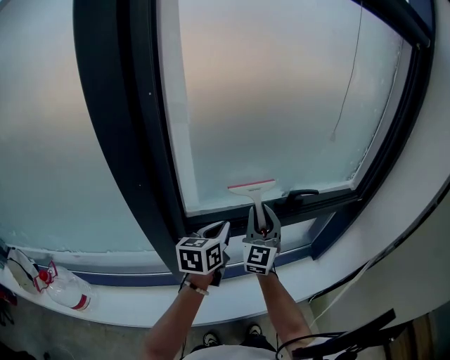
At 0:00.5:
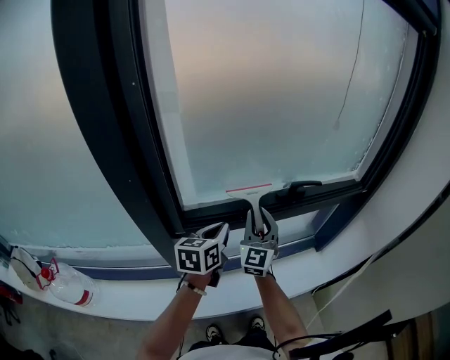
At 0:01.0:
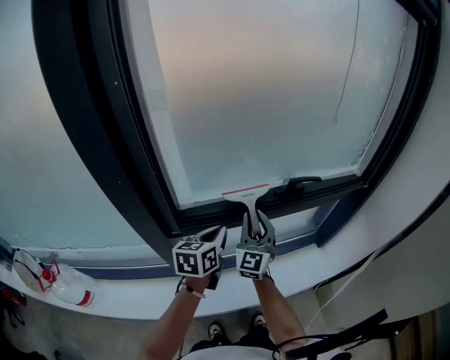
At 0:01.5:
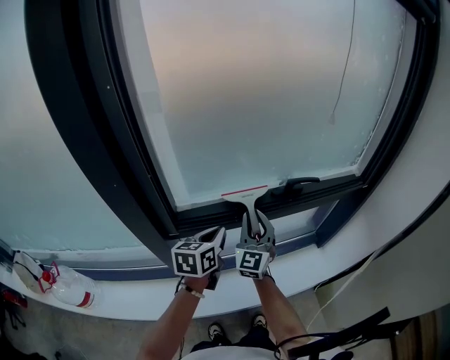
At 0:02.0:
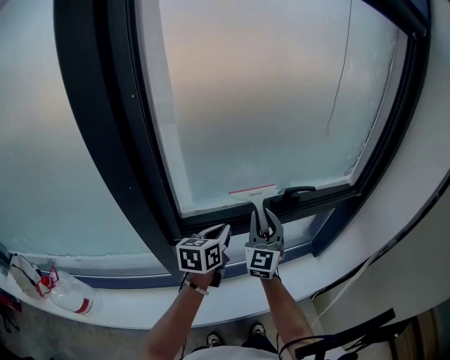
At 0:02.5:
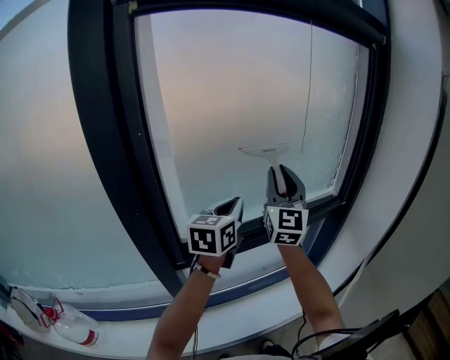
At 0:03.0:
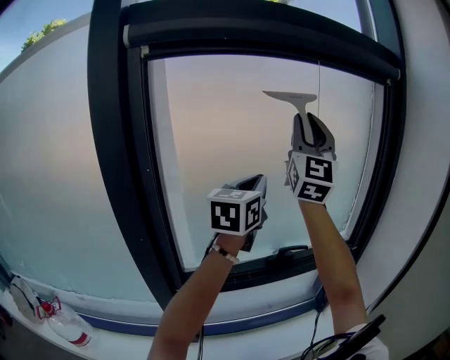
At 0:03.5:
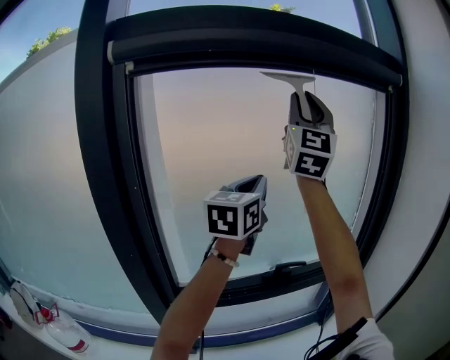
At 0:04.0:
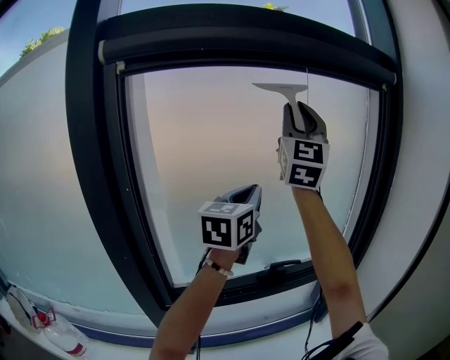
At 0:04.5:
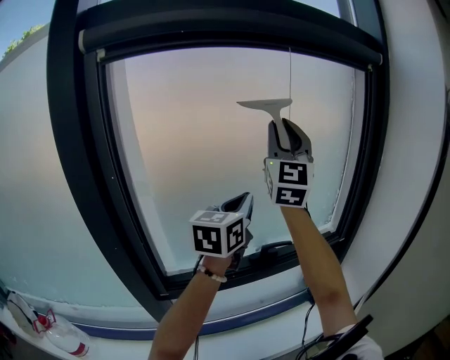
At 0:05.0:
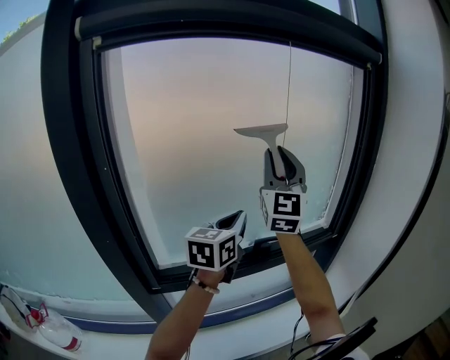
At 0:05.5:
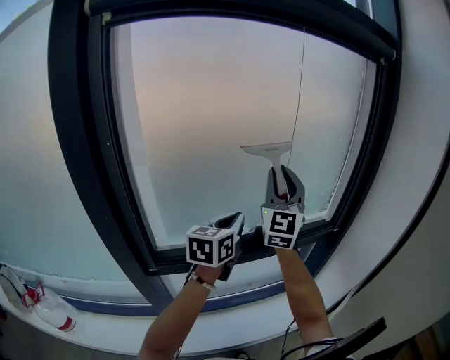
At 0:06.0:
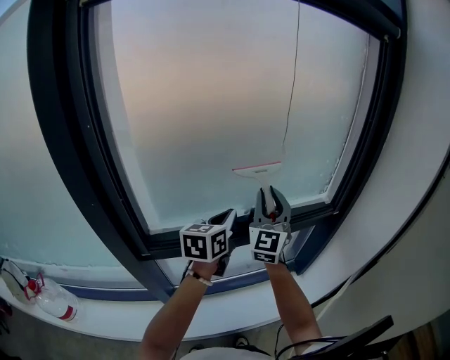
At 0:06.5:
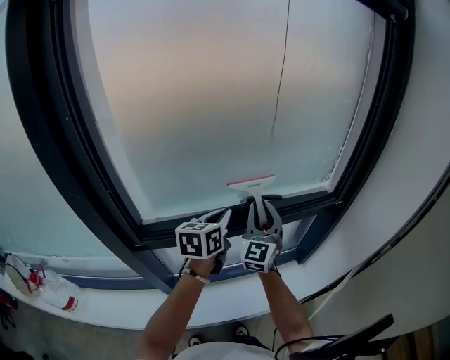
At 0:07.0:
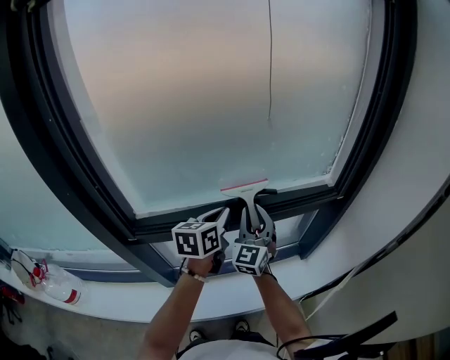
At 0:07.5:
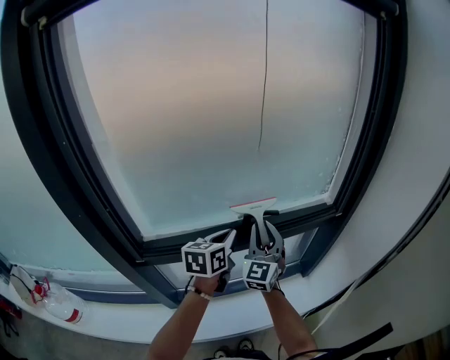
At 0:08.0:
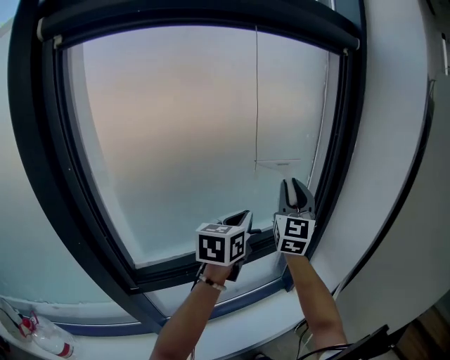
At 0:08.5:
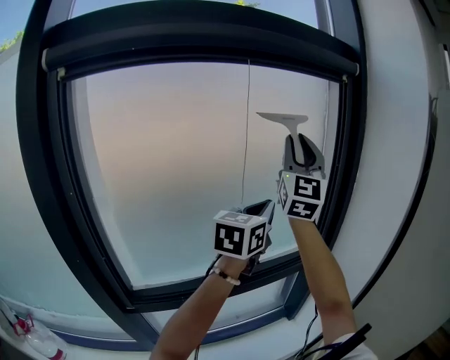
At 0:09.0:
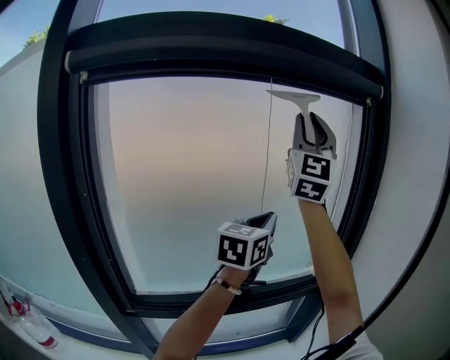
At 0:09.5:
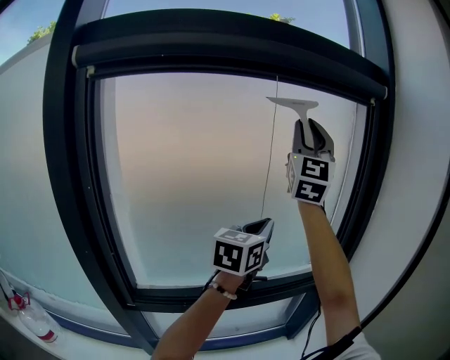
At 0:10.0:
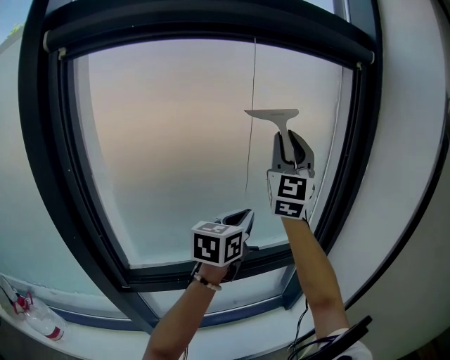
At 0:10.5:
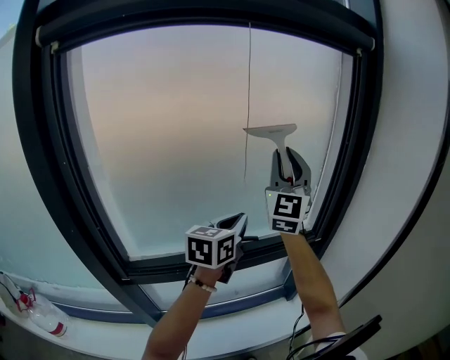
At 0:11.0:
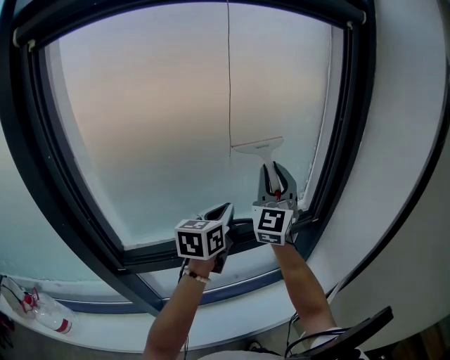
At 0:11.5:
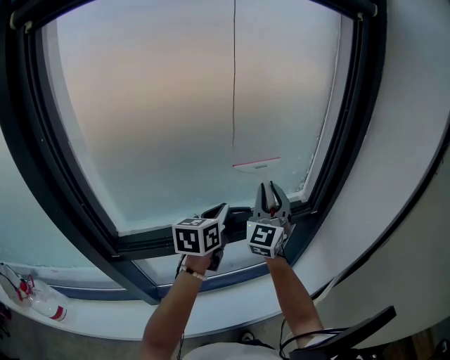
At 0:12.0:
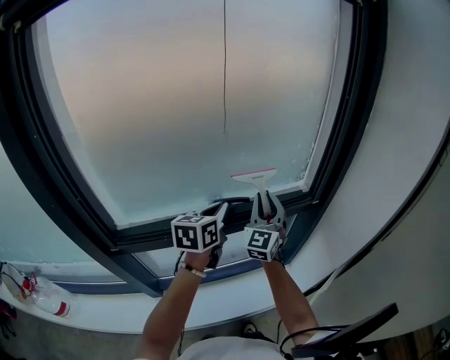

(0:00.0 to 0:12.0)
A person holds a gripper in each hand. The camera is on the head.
0:00.0 - 0:02.0: The right gripper travels downward and back again, some 10 cm each way.
0:02.0 - 0:04.0: Both grippers travel together upward, approximately 50 cm. The right gripper angles its fingers upward, by roughly 30 degrees; the left gripper swivels some 30 degrees.
0:04.0 - 0:06.0: The right gripper goes approximately 40 cm downward, and turns by some 20 degrees. The left gripper goes approximately 25 cm downward, and changes its angle by some 20 degrees.
0:06.0 - 0:08.0: The two grippers go about 15 cm to the right and upward.
0:08.0 - 0:10.0: The left gripper goes upward and returns, some 15 cm each way. The right gripper shifts about 15 cm upward.
0:10.0 - 0:12.0: The right gripper shifts some 35 cm downward, and swivels about 30 degrees, while the left gripper is displaced downward by some 15 cm.

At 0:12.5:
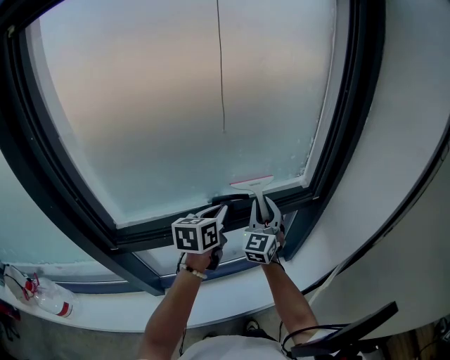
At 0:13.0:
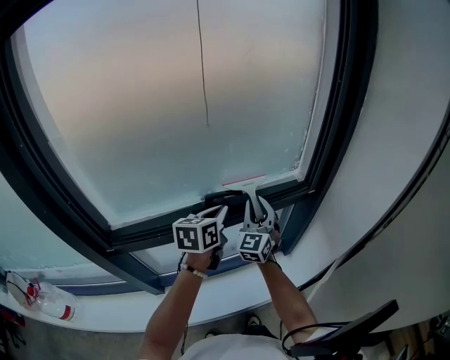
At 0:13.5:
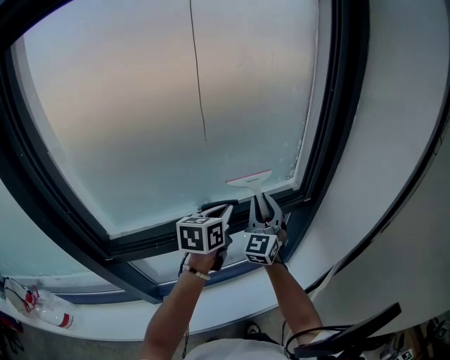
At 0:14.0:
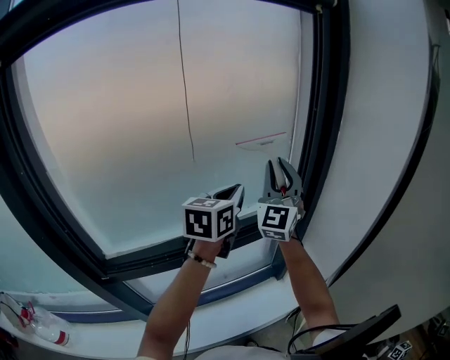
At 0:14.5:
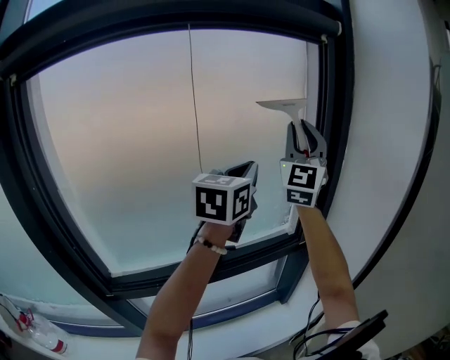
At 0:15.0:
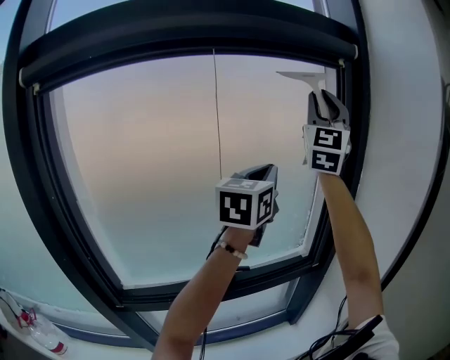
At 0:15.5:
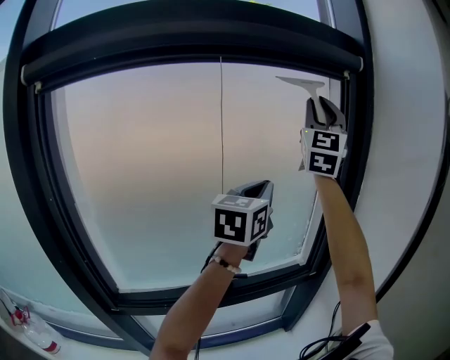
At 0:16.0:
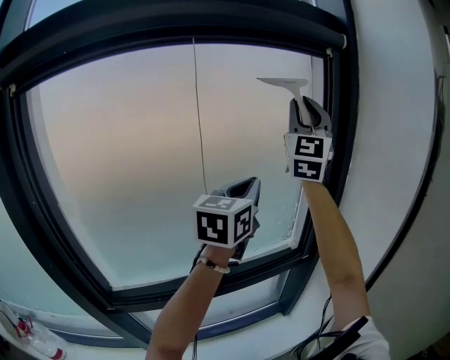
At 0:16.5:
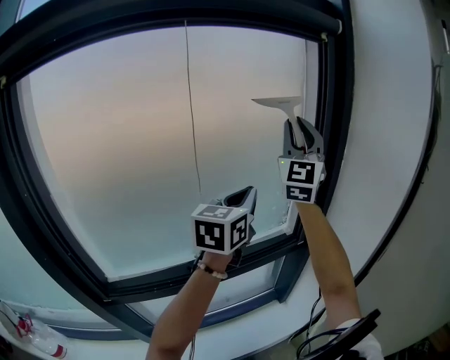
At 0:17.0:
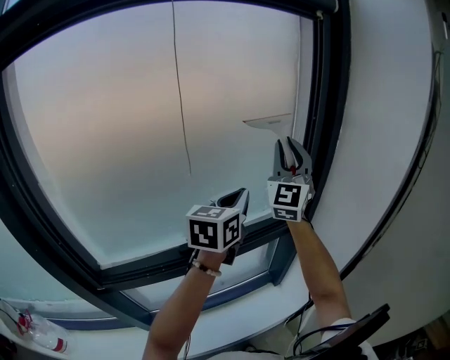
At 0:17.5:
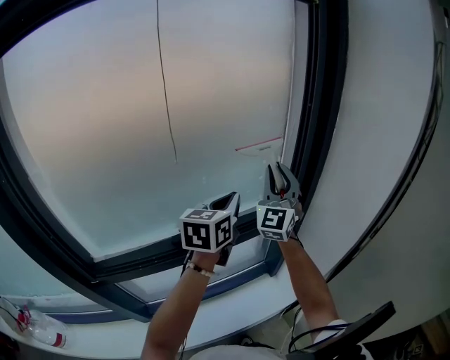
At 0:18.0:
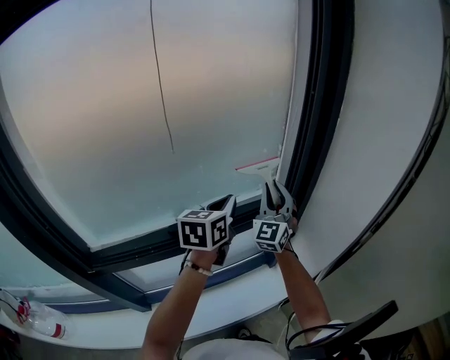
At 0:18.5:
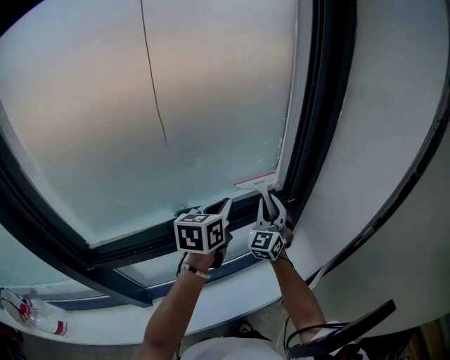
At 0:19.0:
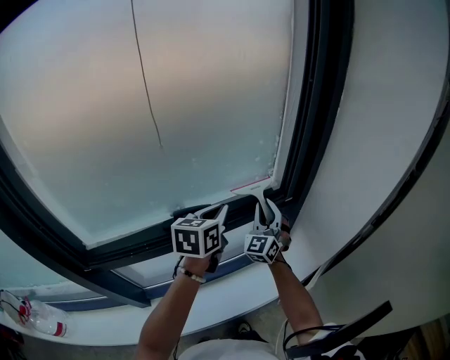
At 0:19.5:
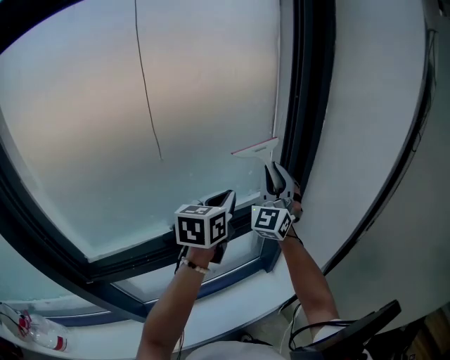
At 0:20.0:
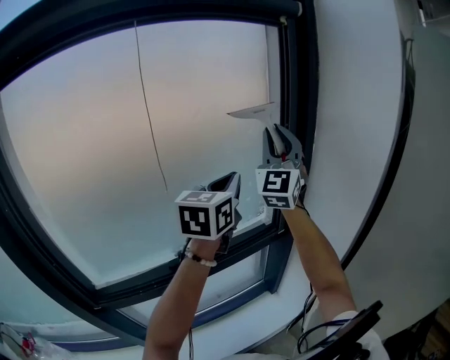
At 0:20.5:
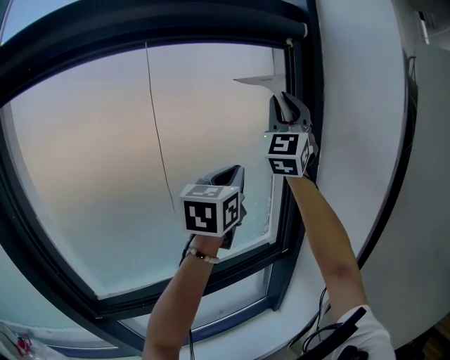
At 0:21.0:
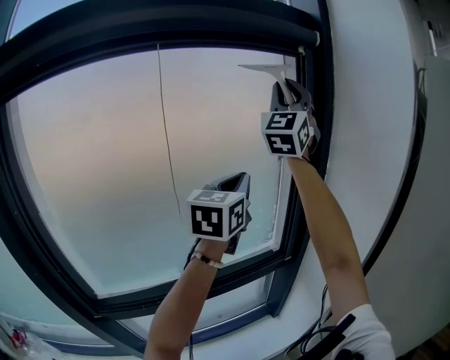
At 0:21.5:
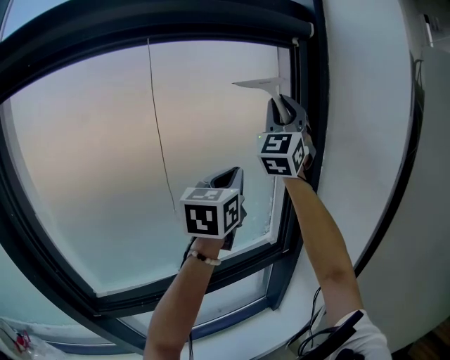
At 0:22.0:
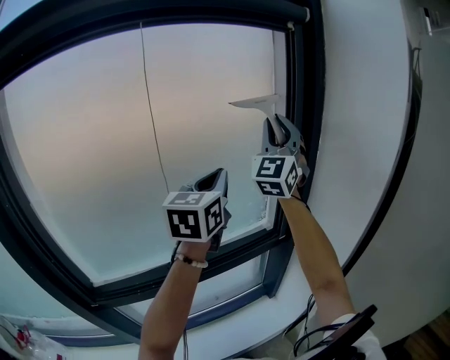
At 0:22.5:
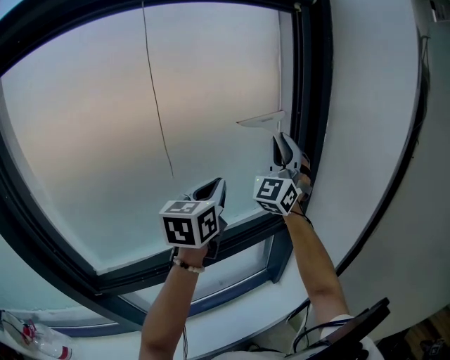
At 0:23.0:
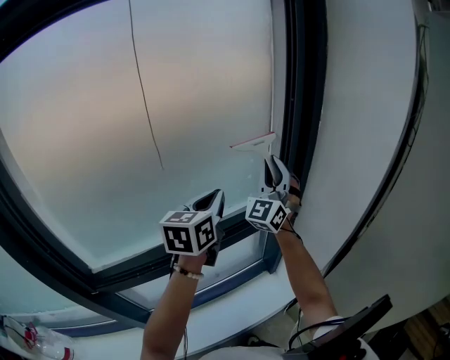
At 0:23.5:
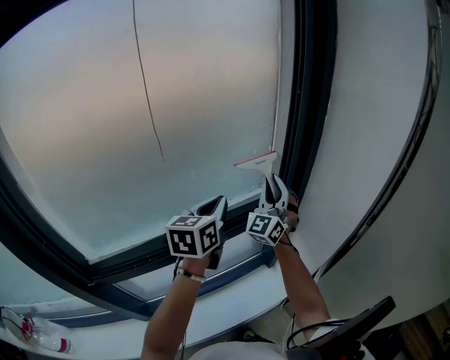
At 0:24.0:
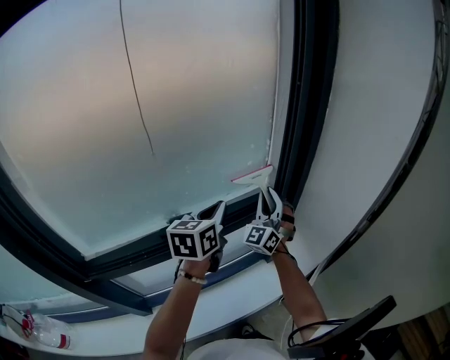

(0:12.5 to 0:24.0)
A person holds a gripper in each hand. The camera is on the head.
0:12.5 - 0:14.5: The two grippers go roughly 35 cm upward. The right gripper tips its fingers upward by about 30 degrees. Meanwhile the left gripper rotates about 30 degrees.
0:14.5 - 0:16.5: The left gripper shifts about 5 cm downward; the right gripper goes upward and returns, some 15 cm each way.
0:16.5 - 0:18.5: The right gripper shifts approximately 40 cm downward, and turns by roughly 30 degrees. The left gripper heads downward, covering roughly 20 cm, and changes its angle by some 20 degrees.
0:18.5 - 0:20.0: The right gripper goes roughly 35 cm upward, and swivels about 30 degrees, while the left gripper heads upward, covering some 20 cm, and changes its angle by about 20 degrees.
0:20.0 - 0:22.0: The right gripper reaches roughly 20 cm upward, then returns.
0:22.0 - 0:24.0: The right gripper moves downward, approximately 40 cm, and changes its angle by some 20 degrees, while the left gripper shifts some 25 cm downward, and turns by roughly 20 degrees.

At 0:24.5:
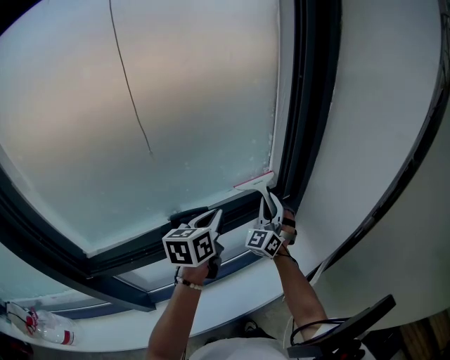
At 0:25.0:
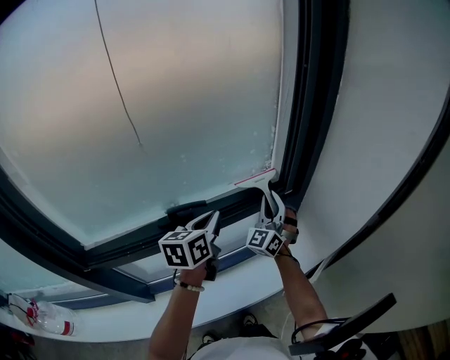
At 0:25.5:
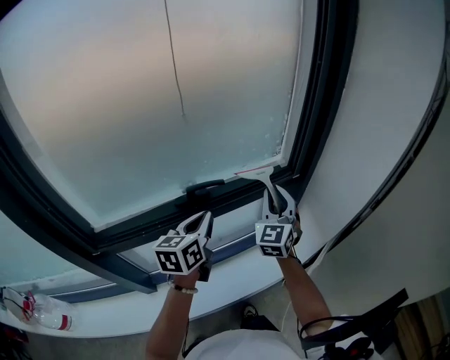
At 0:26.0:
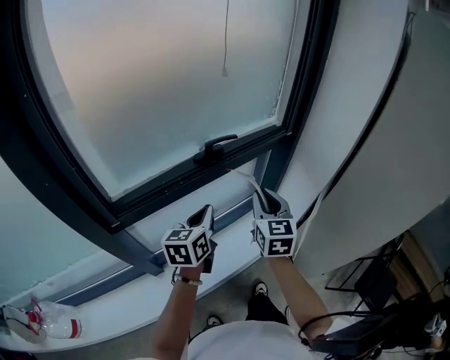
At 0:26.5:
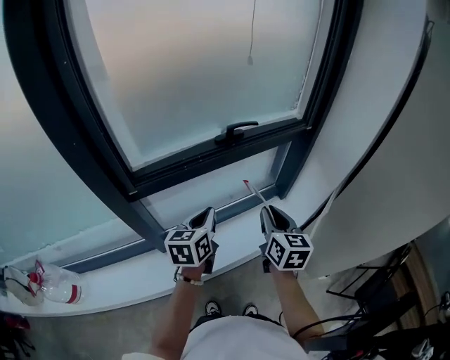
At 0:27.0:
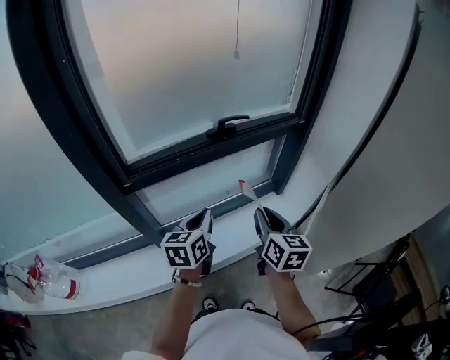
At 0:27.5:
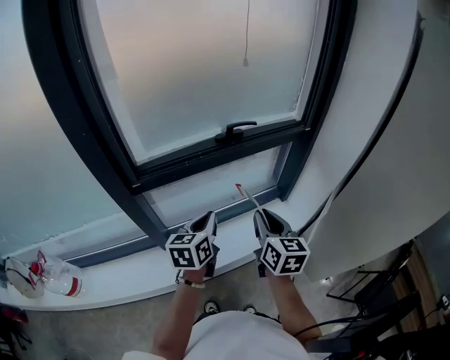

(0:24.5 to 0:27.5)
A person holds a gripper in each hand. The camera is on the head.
0:24.5 - 0:26.0: The left gripper goes some 30 cm backward and to the left, while the right gripper goes about 35 cm backward, and swivels roughly 40 degrees.
0:26.0 - 0:27.5: The grippers both shift backward by about 15 cm. The right gripper changes its angle by about 20 degrees.
